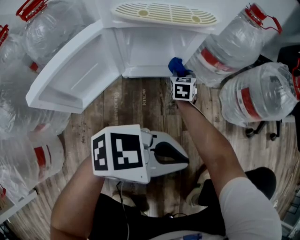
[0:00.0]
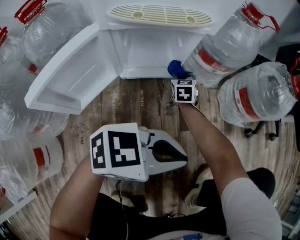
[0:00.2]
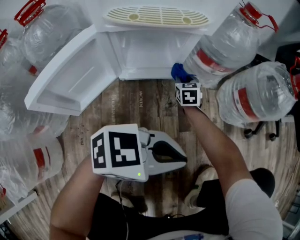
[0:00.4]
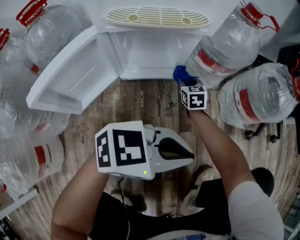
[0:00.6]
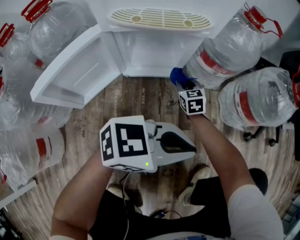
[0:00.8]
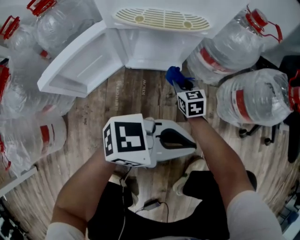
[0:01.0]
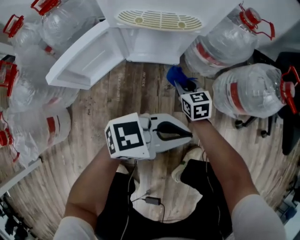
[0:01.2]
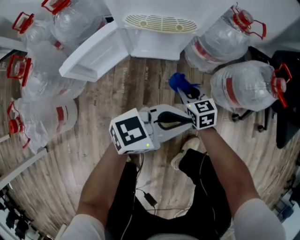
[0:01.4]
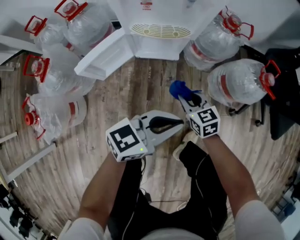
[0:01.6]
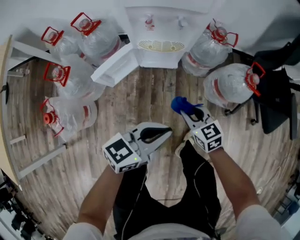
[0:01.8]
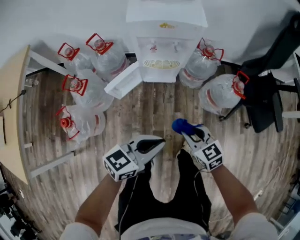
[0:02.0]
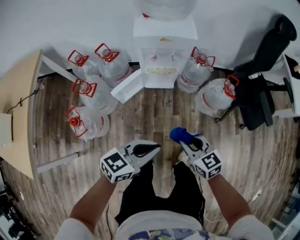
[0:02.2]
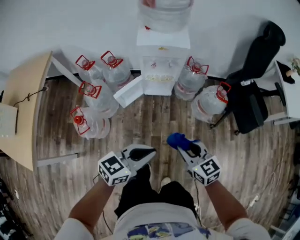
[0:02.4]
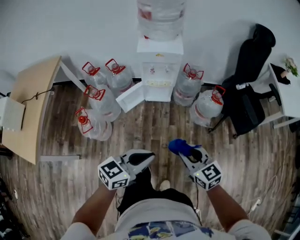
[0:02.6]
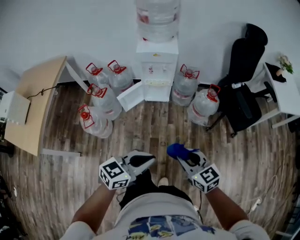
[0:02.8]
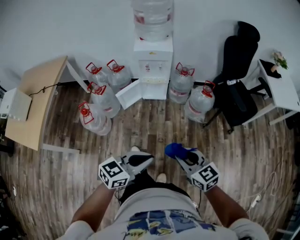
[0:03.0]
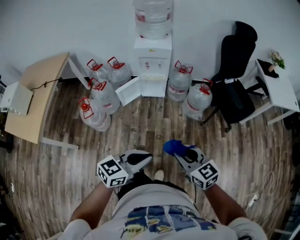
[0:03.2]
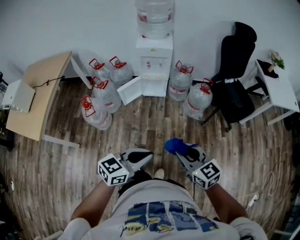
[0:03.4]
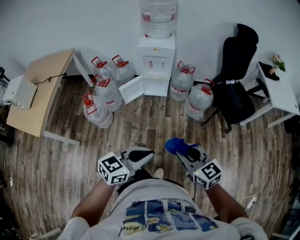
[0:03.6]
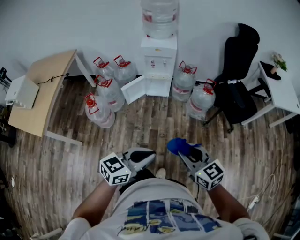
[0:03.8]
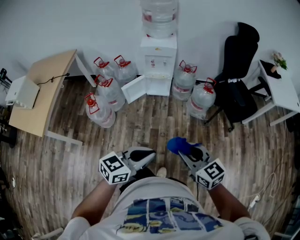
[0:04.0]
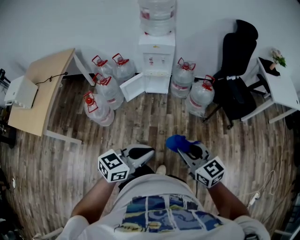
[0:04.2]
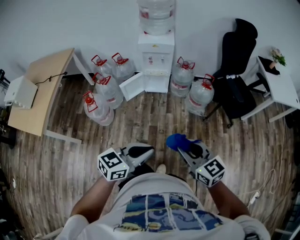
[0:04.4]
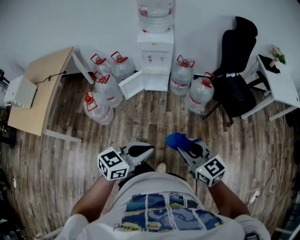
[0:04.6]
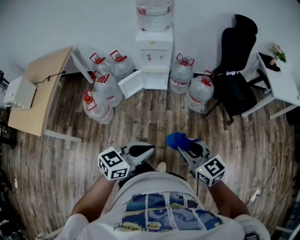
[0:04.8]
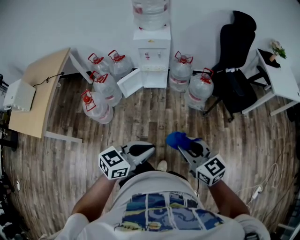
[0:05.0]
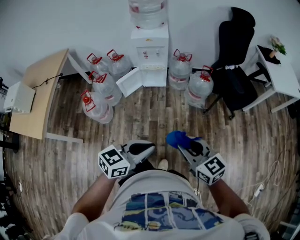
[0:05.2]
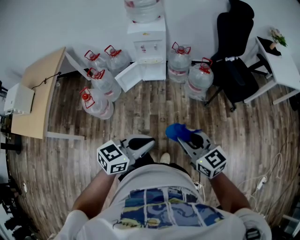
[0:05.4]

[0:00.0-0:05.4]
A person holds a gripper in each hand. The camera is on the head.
0:00.0 to 0:01.4: The grippers both shift upward by roughly 15 cm. The right gripper changes its angle by some 30 degrees, while the left gripper rotates approximately 30 degrees.
0:01.4 to 0:02.8: Both grippers are carried backward, some 40 cm. Both grippers travel together upward, about 60 cm. The right gripper swivels roughly 20 degrees.
0:02.8 to 0:04.0: The right gripper goes about 15 cm backward and upward, while the left gripper moves backward, some 15 cm.
0:04.0 to 0:05.4: The grippers stay close to where they were, moving slightly.

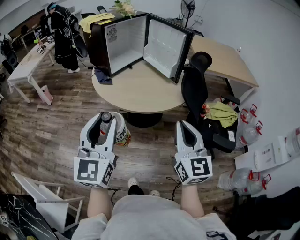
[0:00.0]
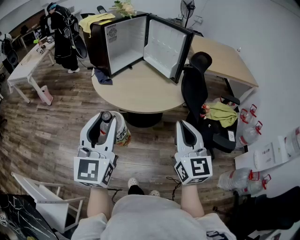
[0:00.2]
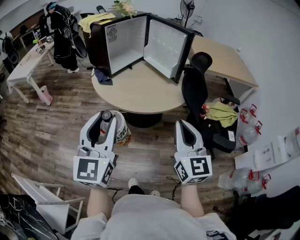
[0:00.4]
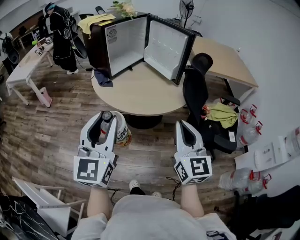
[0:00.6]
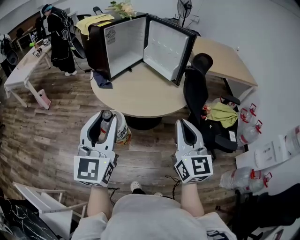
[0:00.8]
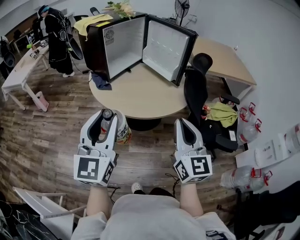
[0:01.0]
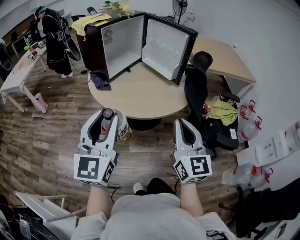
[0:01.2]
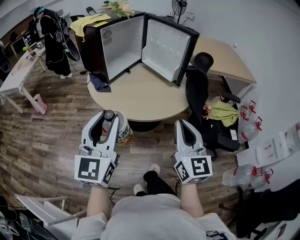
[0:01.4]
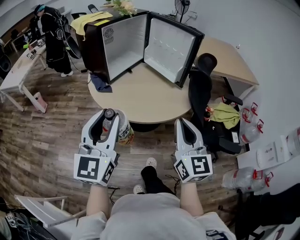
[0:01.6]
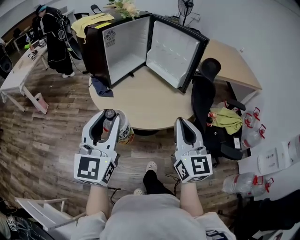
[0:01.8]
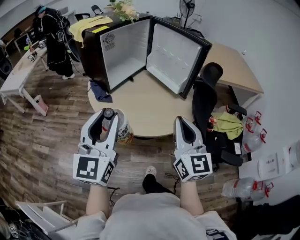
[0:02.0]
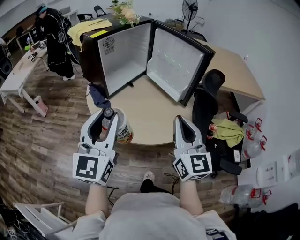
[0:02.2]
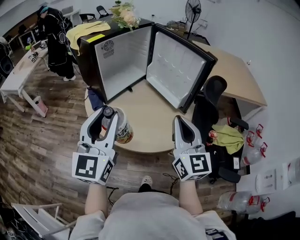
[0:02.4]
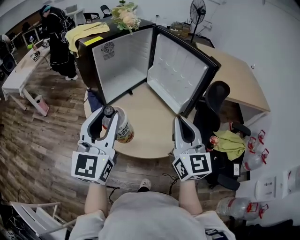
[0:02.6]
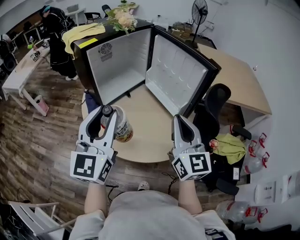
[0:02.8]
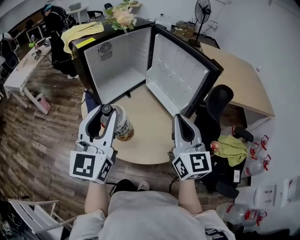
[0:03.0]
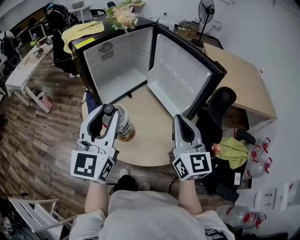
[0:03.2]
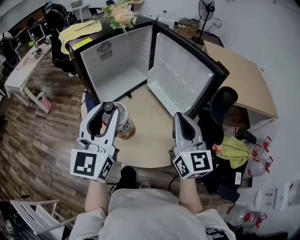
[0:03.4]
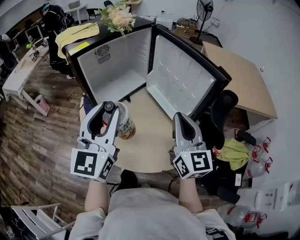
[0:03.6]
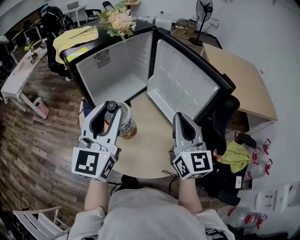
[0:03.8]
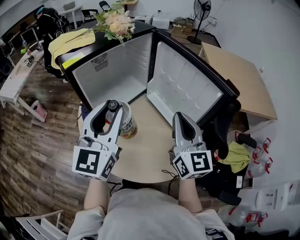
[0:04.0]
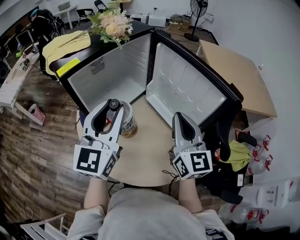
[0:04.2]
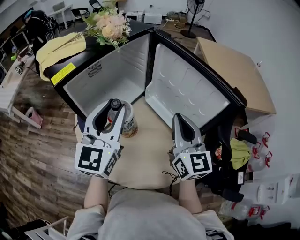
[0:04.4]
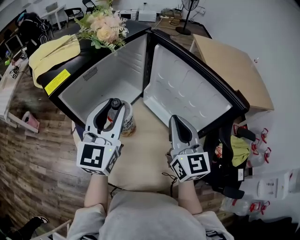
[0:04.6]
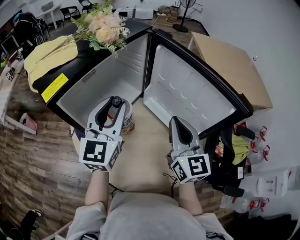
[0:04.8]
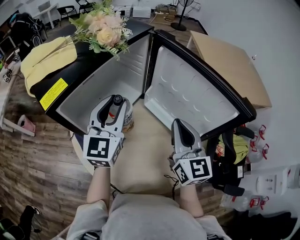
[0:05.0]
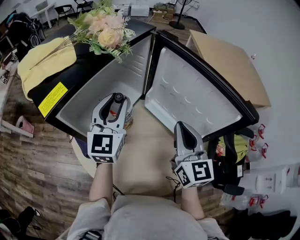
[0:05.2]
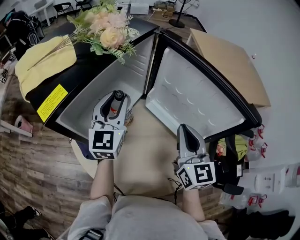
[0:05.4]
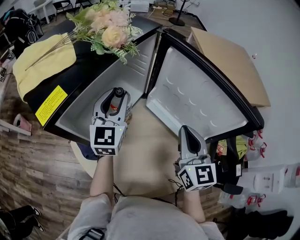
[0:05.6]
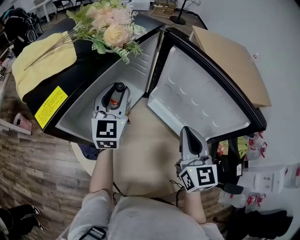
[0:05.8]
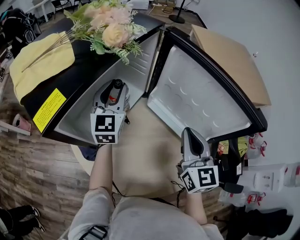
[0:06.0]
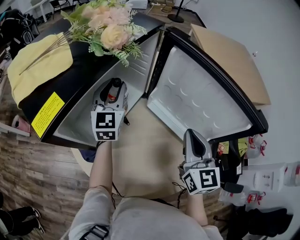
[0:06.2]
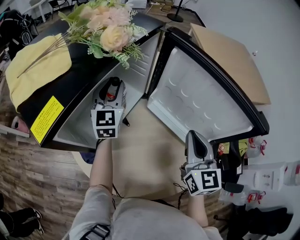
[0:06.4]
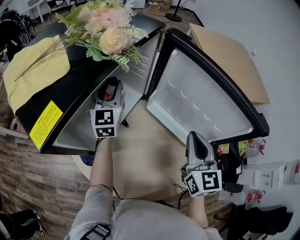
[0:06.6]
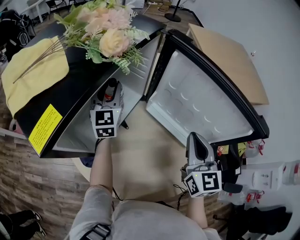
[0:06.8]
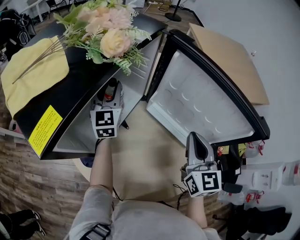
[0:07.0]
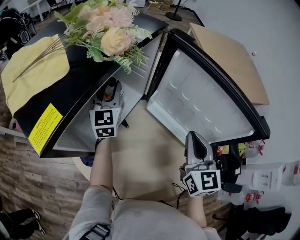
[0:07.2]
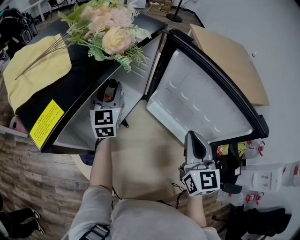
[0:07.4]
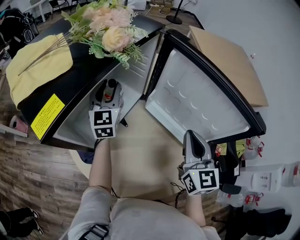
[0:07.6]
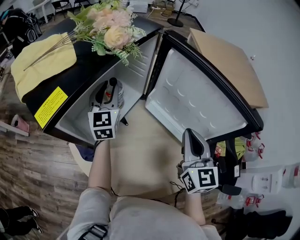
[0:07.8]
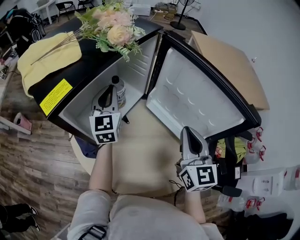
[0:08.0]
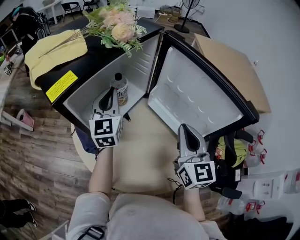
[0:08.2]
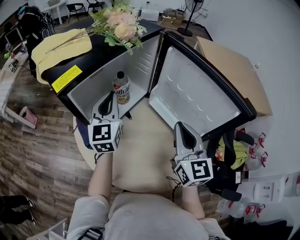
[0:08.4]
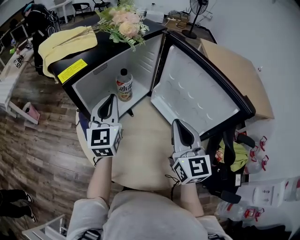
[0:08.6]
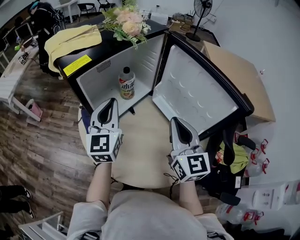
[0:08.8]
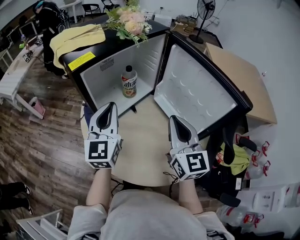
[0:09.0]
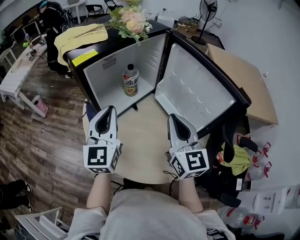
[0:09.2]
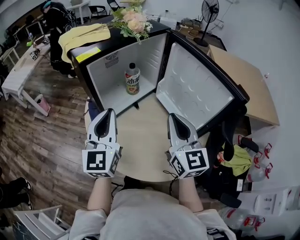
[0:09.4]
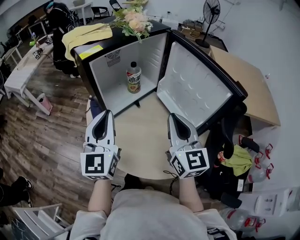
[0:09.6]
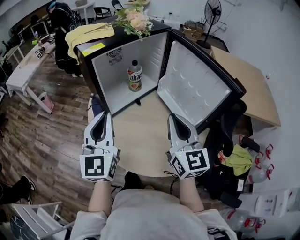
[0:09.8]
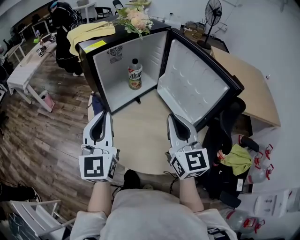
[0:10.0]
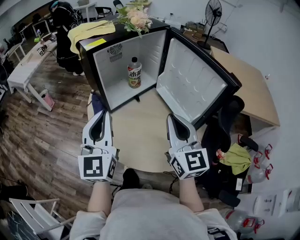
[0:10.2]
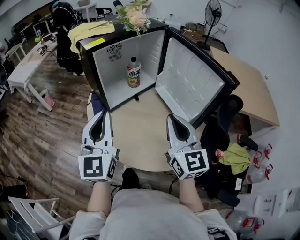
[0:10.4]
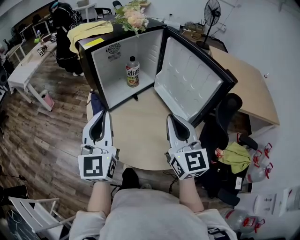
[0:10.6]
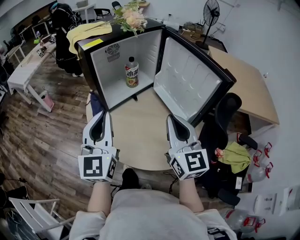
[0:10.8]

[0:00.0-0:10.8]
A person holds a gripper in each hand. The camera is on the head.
0:00.0 to 0:01.6: The grippers both shift forward and to the left by about 10 cm.
0:01.6 to 0:03.0: Both grippers travel together forward, about 25 cm.
0:03.0 to 0:04.6: The grippers both shift forward by some 20 cm.
0:04.6 to 0:06.2: The left gripper is displaced forward and downward by about 20 cm. The right gripper changes place by approximately 5 cm.
0:06.2 to 0:07.8: There are only small adjustments of the grippers.
0:07.8 to 0:09.2: The left gripper shifts roughly 25 cm backward, and closes up; the right gripper is displaced backward and to the left by approximately 10 cm, and rotates some 20 degrees.
0:09.2 to 0:10.8: The grippers both shift backward by about 10 cm.

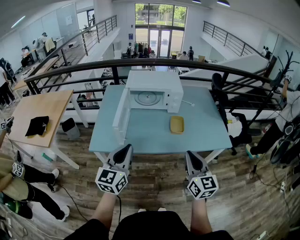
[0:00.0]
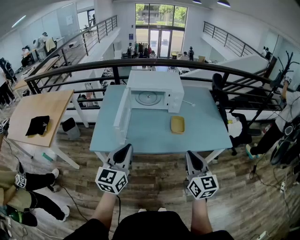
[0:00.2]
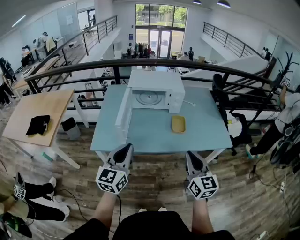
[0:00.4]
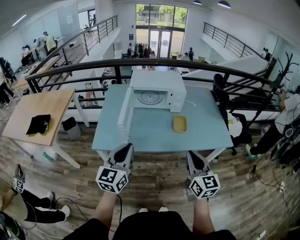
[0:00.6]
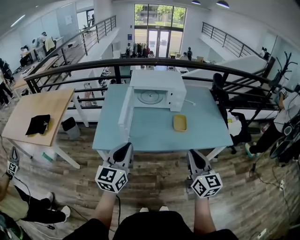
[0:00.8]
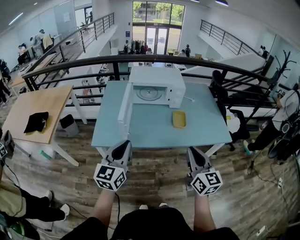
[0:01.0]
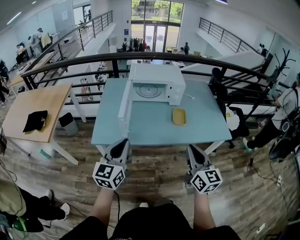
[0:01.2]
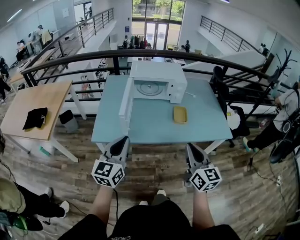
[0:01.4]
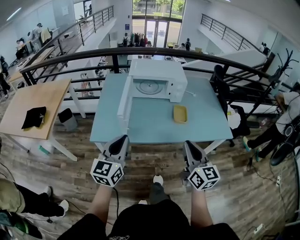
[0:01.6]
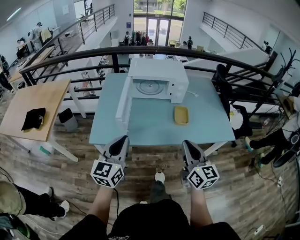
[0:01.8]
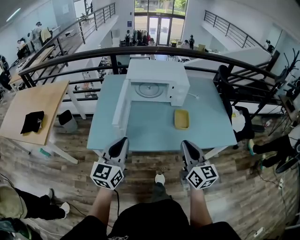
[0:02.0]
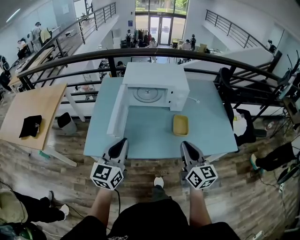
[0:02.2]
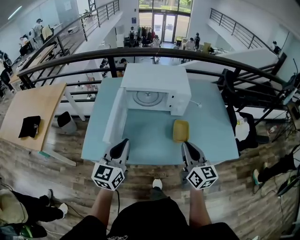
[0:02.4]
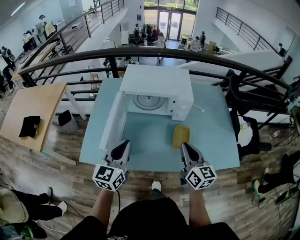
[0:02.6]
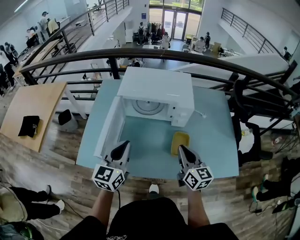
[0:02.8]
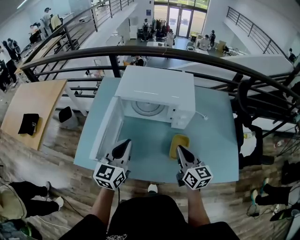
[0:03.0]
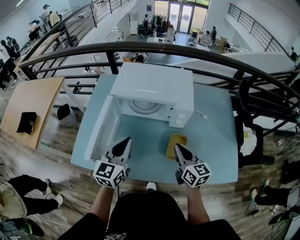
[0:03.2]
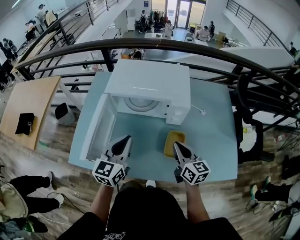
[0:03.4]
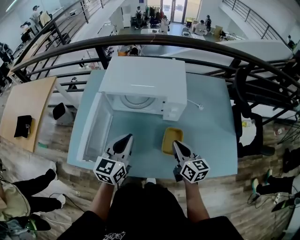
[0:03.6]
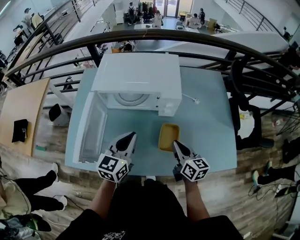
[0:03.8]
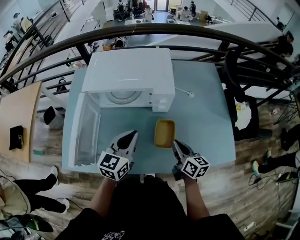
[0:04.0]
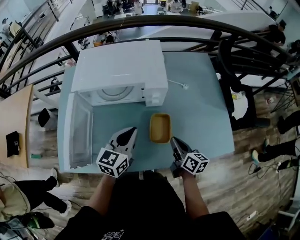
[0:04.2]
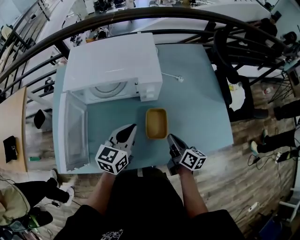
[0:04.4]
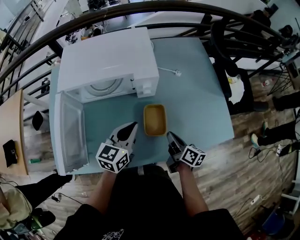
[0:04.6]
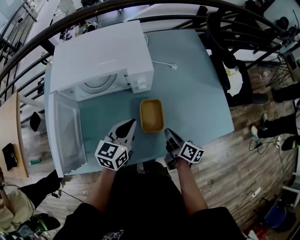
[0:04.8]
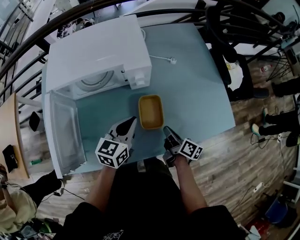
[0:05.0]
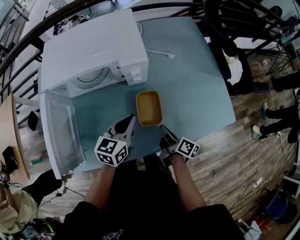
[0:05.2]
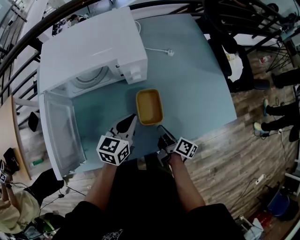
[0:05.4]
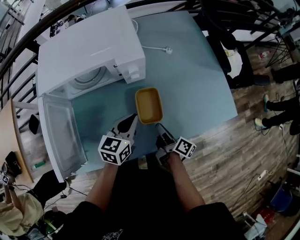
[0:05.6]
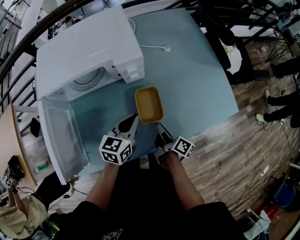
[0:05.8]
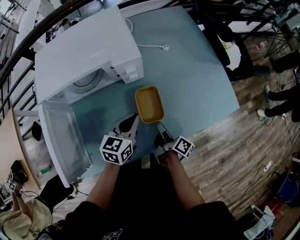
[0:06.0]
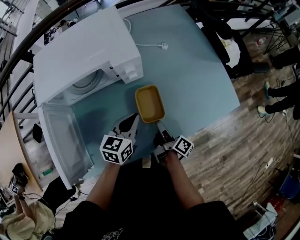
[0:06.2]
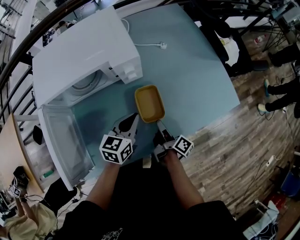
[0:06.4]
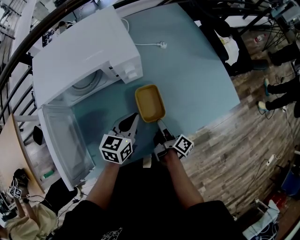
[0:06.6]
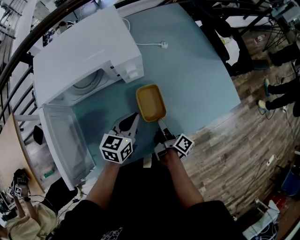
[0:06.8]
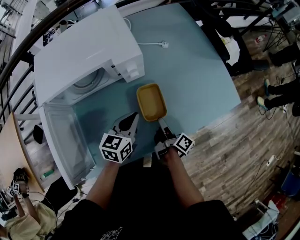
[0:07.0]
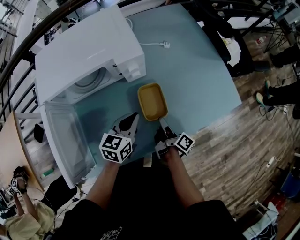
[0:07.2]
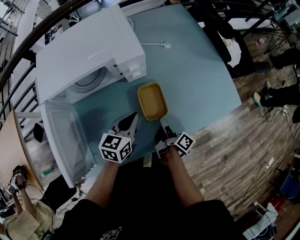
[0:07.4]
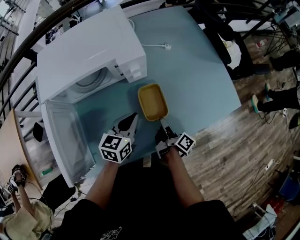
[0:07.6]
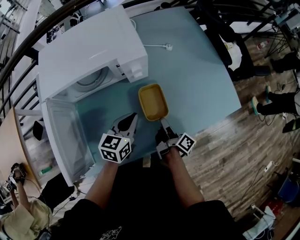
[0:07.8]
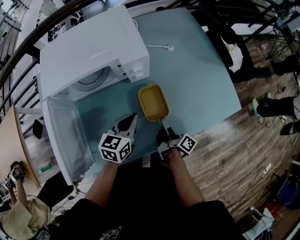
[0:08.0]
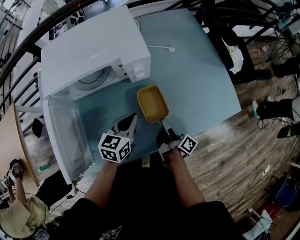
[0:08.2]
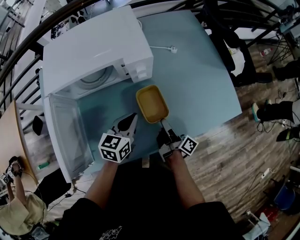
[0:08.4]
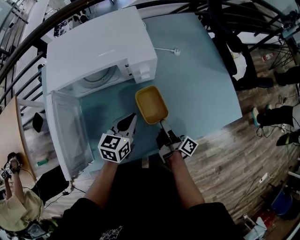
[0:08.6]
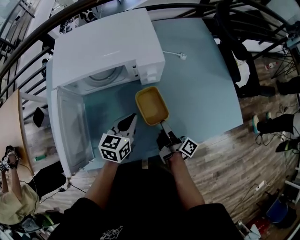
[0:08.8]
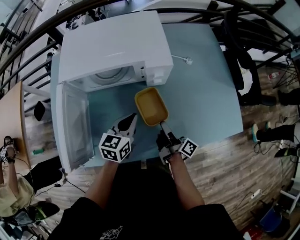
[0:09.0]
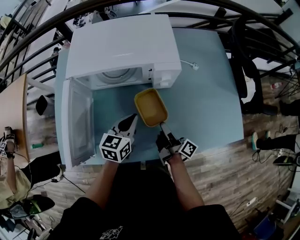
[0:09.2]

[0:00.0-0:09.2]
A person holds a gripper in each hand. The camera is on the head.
0:00.0 to 0:01.6: Both grippers move to the left, approximately 5 cm.
0:01.6 to 0:03.0: The two grippers go some 30 cm forward.
0:03.0 to 0:04.6: The left gripper shifts some 20 cm to the right and downward, and rotates roughly 30 degrees, while the right gripper is displaced downward and to the right by approximately 20 cm, and rotates around the line of its fingers by some 40 degrees, clockwise from behind.
0:04.6 to 0:06.2: Both grippers travel together downward, about 10 cm. The right gripper rotates some 40 degrees.
0:06.2 to 0:07.6: There are only small adjustments of the grippers.
0:07.6 to 0:09.2: The right gripper goes some 10 cm to the left and upward, and changes its angle by some 30 degrees. Meanwhile the left gripper heads to the left, covering some 10 cm.
